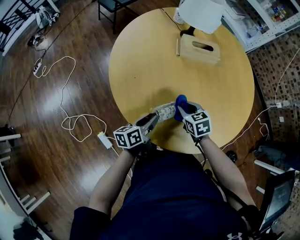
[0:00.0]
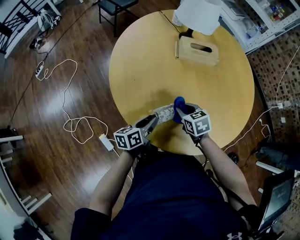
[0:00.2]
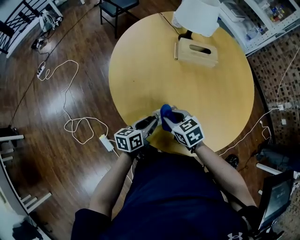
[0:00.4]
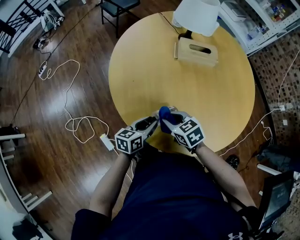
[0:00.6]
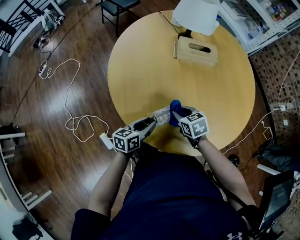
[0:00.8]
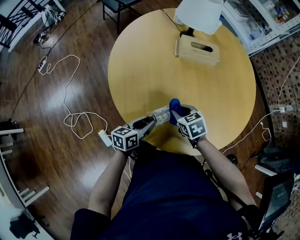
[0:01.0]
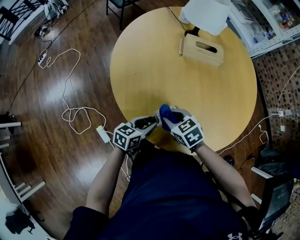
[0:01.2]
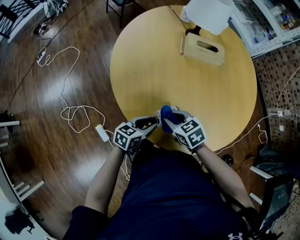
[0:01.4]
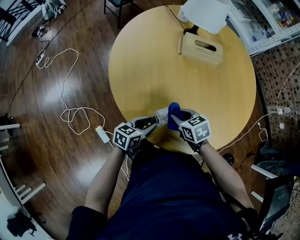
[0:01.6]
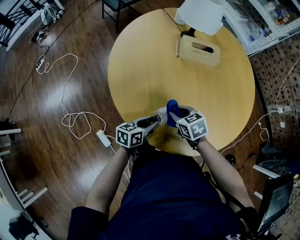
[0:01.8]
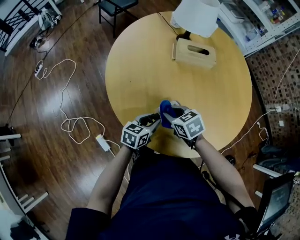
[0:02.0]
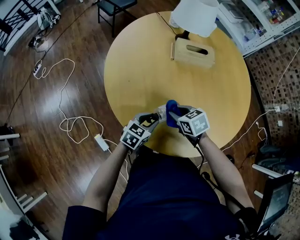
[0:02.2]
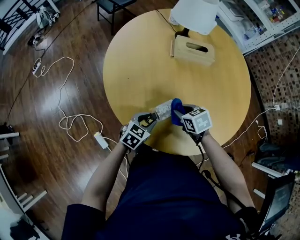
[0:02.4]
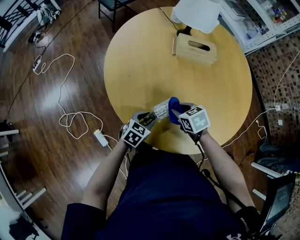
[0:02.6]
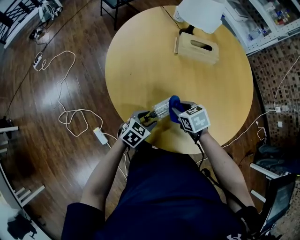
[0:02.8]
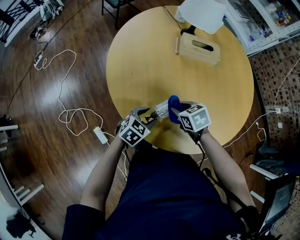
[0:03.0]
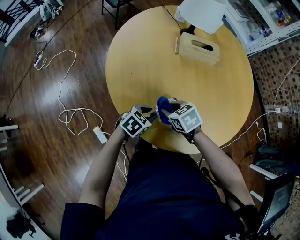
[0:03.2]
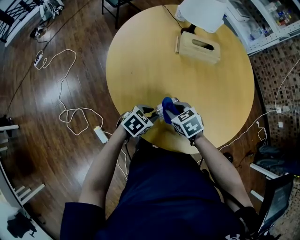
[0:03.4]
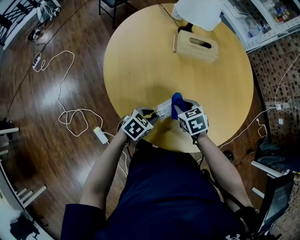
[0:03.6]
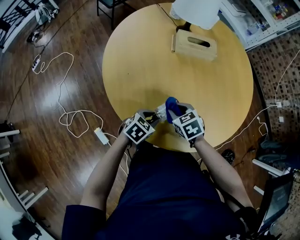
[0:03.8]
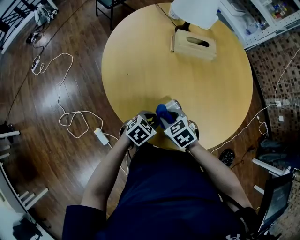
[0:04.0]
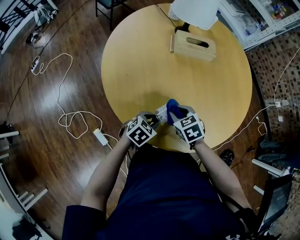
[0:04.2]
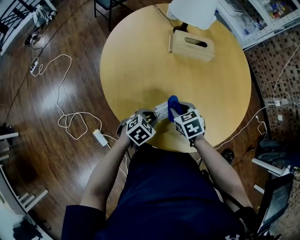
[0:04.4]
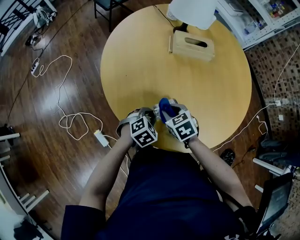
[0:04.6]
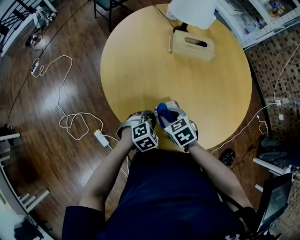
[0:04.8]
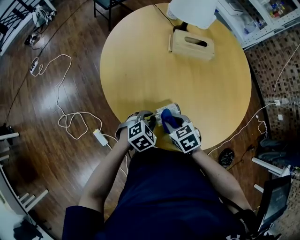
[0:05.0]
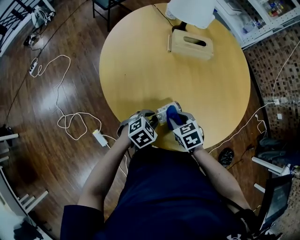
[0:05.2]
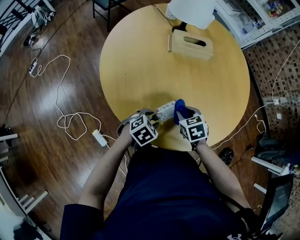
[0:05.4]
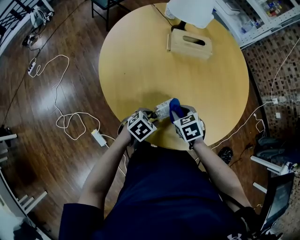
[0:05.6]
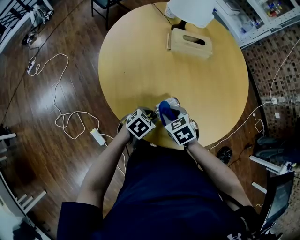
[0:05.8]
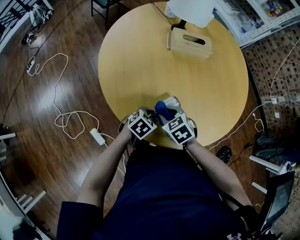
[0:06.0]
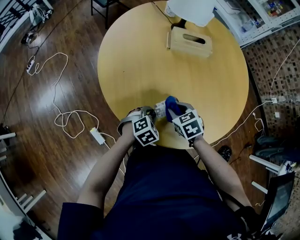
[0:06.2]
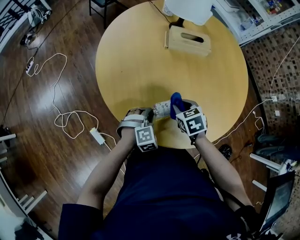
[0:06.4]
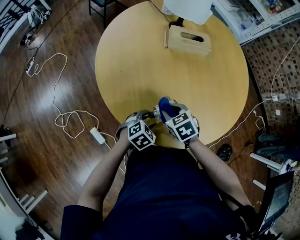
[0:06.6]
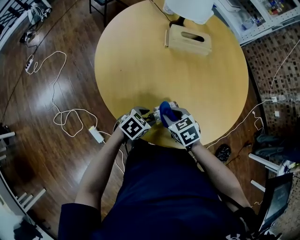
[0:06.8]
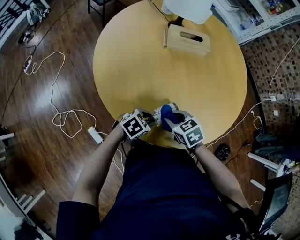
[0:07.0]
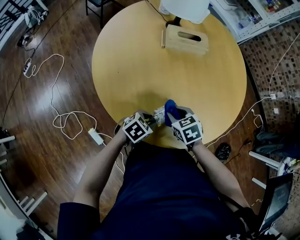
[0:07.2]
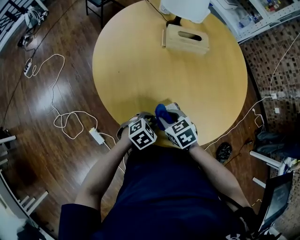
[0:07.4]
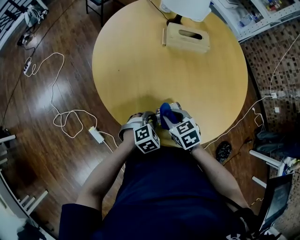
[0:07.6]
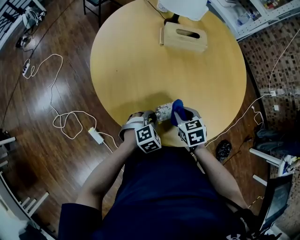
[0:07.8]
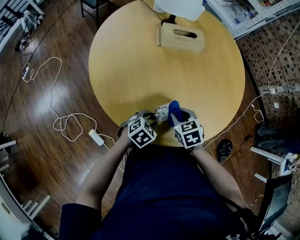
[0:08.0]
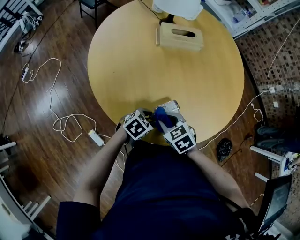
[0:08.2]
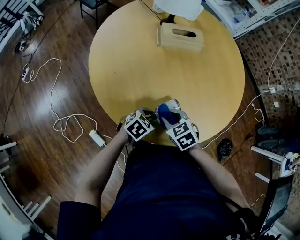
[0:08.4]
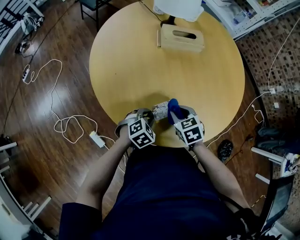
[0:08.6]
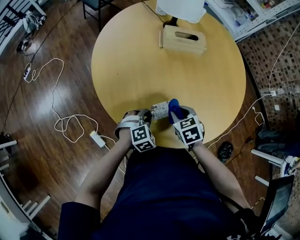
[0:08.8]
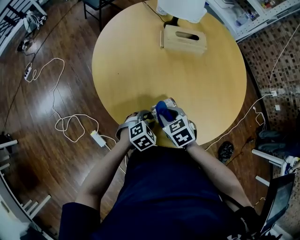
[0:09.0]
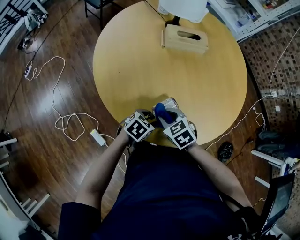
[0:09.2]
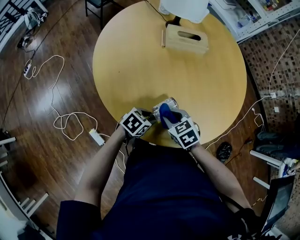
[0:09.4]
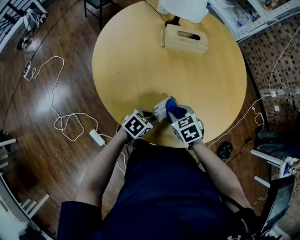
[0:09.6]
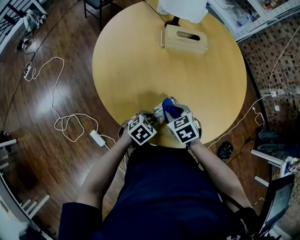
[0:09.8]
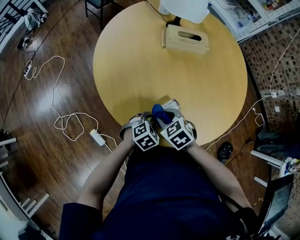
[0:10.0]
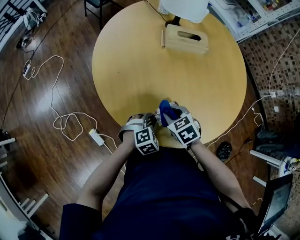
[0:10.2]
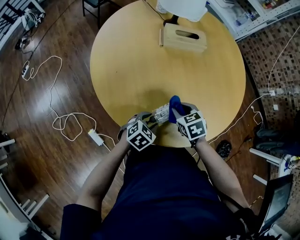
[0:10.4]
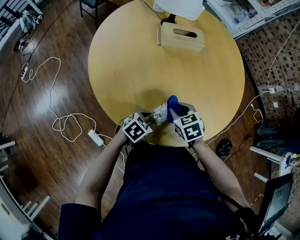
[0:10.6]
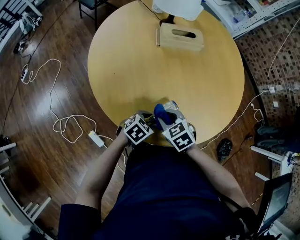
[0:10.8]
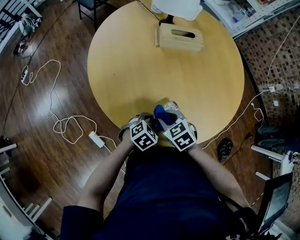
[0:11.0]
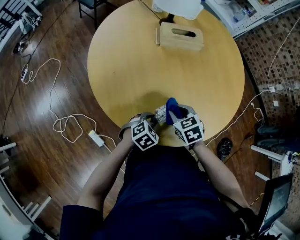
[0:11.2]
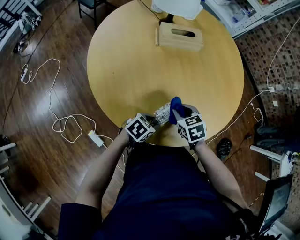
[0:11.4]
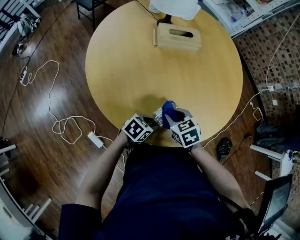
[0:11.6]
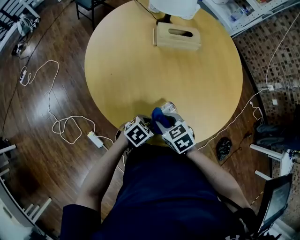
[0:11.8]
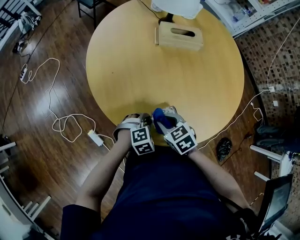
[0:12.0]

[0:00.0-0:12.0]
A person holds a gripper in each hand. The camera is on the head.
0:00.0 to 0:01.6: The right gripper swings left and right, roughly 5 cm each way, with 3 reversals; the left gripper rotates about 30 degrees.
0:01.6 to 0:03.0: The left gripper rotates some 30 degrees.
0:03.0 to 0:04.4: There are only small adjustments of the grippers.
0:04.4 to 0:06.0: The right gripper moves left and right over some 10 cm, changing direction 2 times.
0:06.0 to 0:07.6: The left gripper swivels approximately 30 degrees.
0:07.6 to 0:09.0: The right gripper swings left and right, some 10 cm each way, with 3 reversals.
0:09.0 to 0:10.4: The right gripper travels to the right by about 5 cm.
0:10.4 to 0:12.0: The right gripper changes place by about 10 cm. Meanwhile the left gripper rotates about 30 degrees.

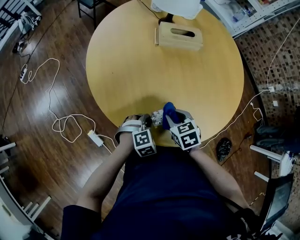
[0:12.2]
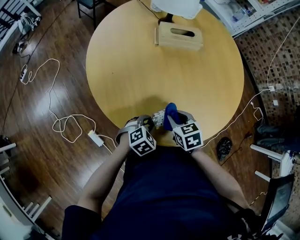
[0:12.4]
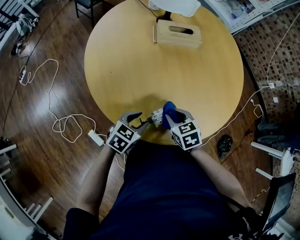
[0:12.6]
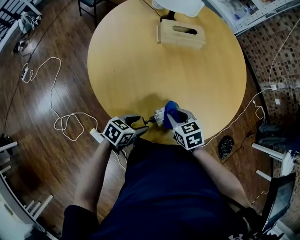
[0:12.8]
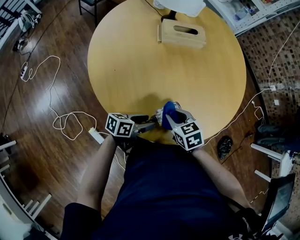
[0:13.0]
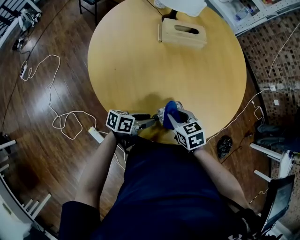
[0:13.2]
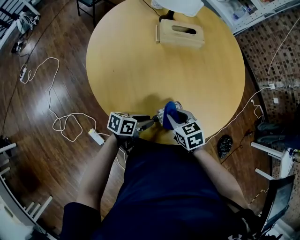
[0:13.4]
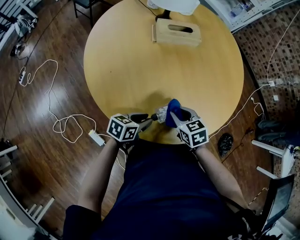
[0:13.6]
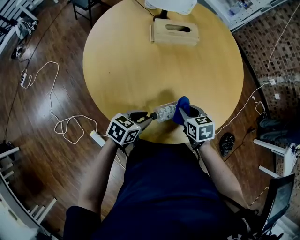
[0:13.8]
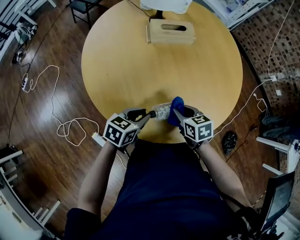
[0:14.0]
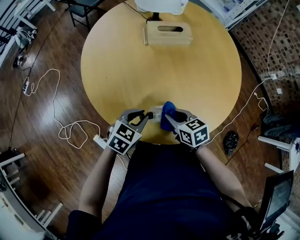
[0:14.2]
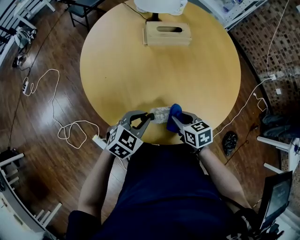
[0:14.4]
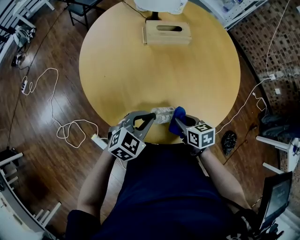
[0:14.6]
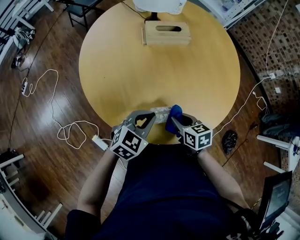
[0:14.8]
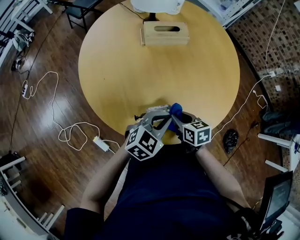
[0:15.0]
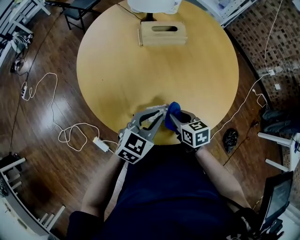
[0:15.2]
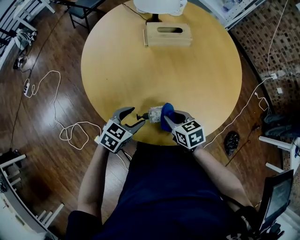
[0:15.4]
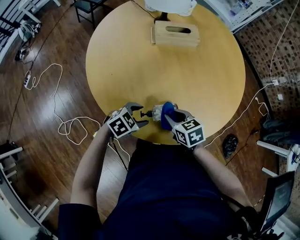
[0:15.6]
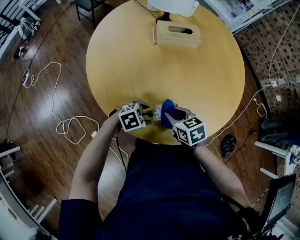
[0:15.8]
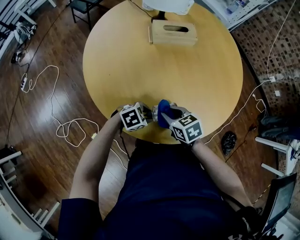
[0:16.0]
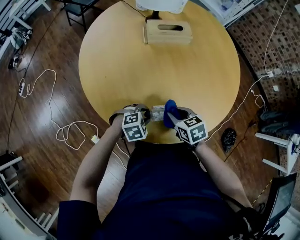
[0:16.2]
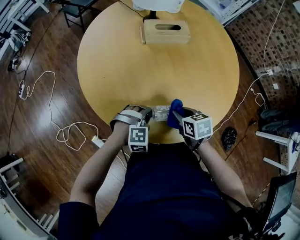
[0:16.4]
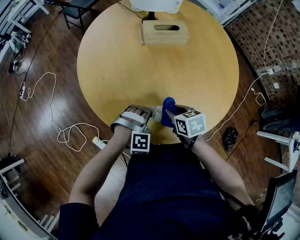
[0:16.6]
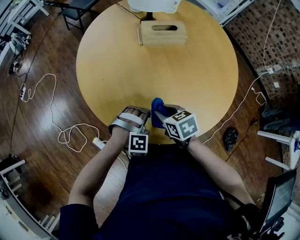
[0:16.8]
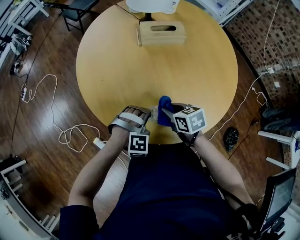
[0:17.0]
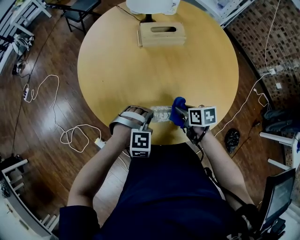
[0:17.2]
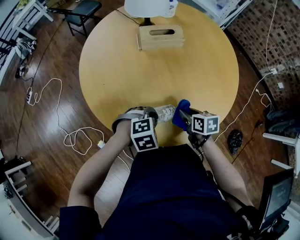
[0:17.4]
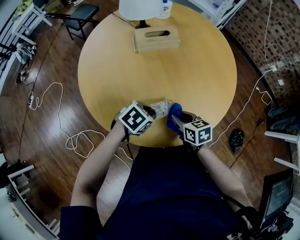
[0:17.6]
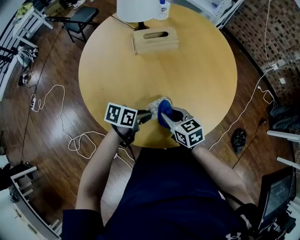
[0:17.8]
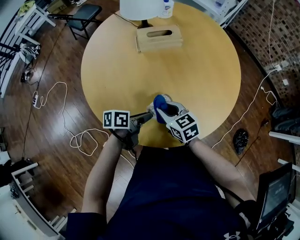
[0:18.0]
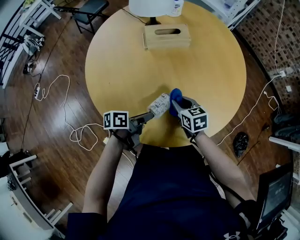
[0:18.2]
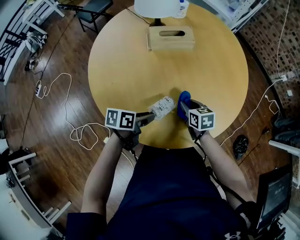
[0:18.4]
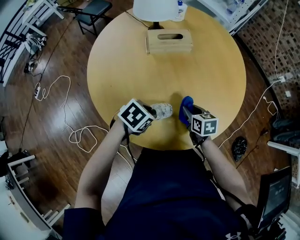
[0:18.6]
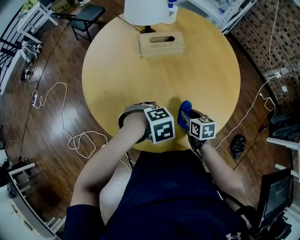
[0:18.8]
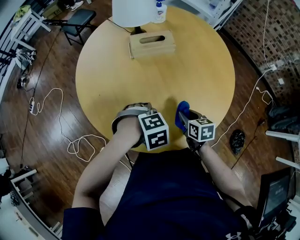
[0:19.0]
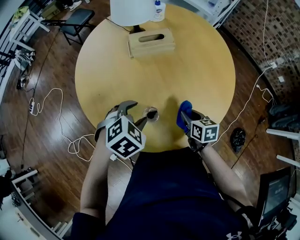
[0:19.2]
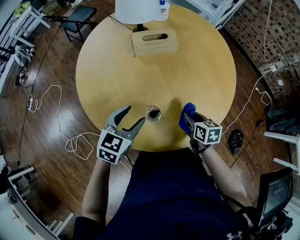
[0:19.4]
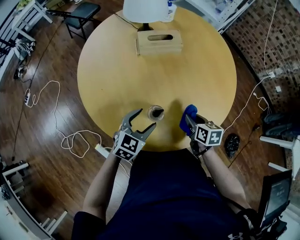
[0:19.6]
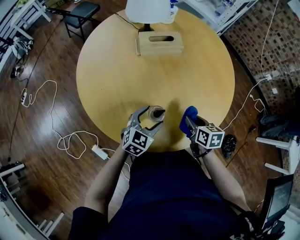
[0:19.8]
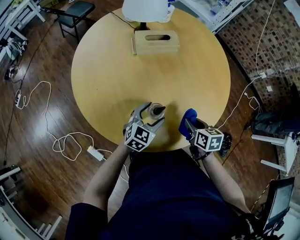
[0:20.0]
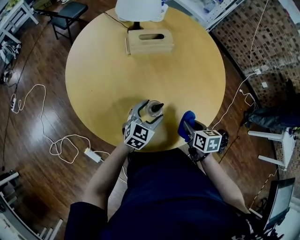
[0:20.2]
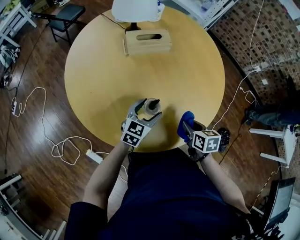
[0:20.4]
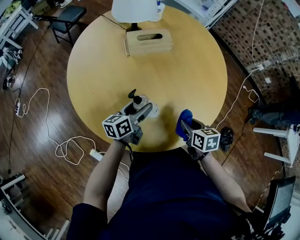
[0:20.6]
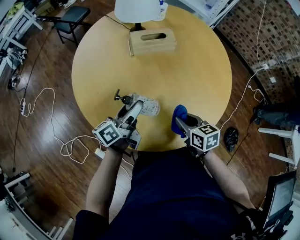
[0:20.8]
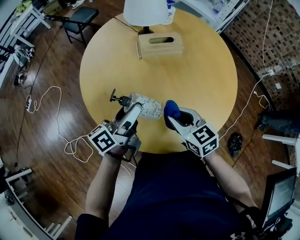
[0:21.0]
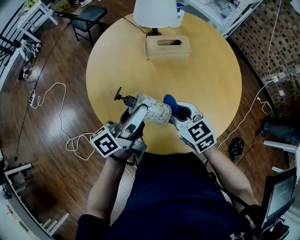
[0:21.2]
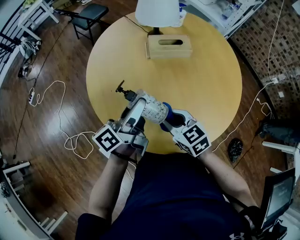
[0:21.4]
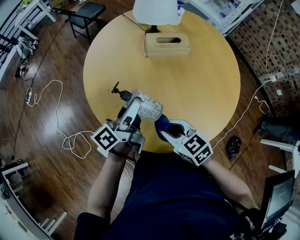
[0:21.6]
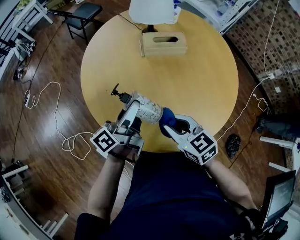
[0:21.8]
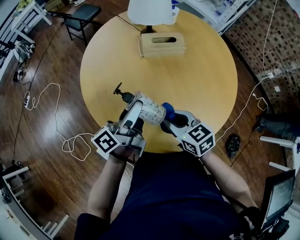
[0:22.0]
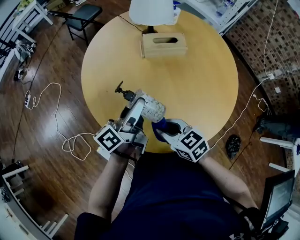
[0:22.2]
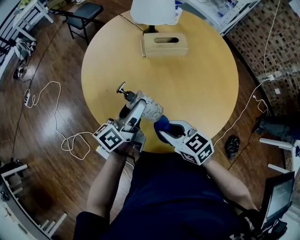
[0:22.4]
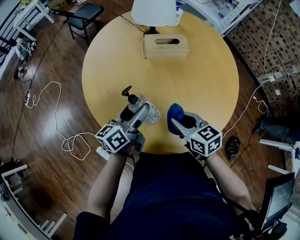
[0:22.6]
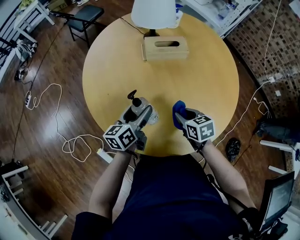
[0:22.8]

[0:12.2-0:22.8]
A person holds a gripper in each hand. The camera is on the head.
0:12.2 to 0:13.8: The left gripper is displaced upward by some 5 cm, and rotates around the line of its fingers by about 50 degrees, counterclockwise from behind, while the right gripper moves to the right, some 5 cm.
0:13.8 to 0:15.2: The left gripper heads upward and to the right, covering about 10 cm, and rotates roughly 30 degrees.
0:15.2 to 0:16.8: The left gripper shifts approximately 10 cm downward, rotates around the line of its fingers by approximately 70 degrees, clockwise from behind, and opens, then closes once more. The right gripper changes place by about 10 cm.
0:16.8 to 0:18.2: The left gripper rotates around the line of its fingers by approximately 130 degrees, counterclockwise from behind, while the right gripper swings up and down, roughly 5 cm each way, with 2 reversals.
0:18.2 to 0:19.8: The right gripper changes place by about 10 cm. Meanwhile the left gripper moves roughly 10 cm upward and comes back, rolls clockwise, seen from behind, by about 80 degrees, and opens its fingers.
0:19.8 to 0:21.2: The left gripper shifts some 20 cm upward and to the left, and twists some 60 degrees counterclockwise, seen from behind. Meanwhile the right gripper travels to the left and upward by roughly 20 cm, and swivels about 40 degrees.
0:21.2 to 0:22.8: The right gripper heads downward and to the right, covering approximately 10 cm, and changes its angle by roughly 30 degrees. The left gripper heads downward, covering approximately 15 cm, and changes its angle by some 30 degrees.

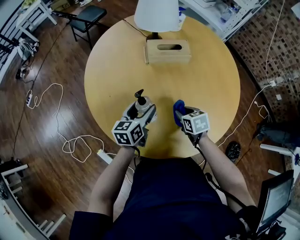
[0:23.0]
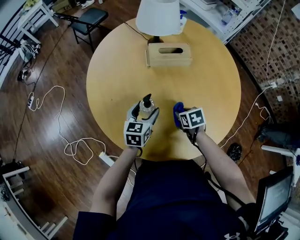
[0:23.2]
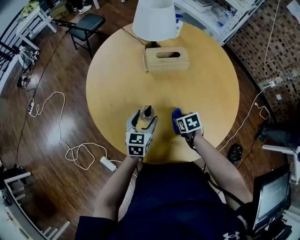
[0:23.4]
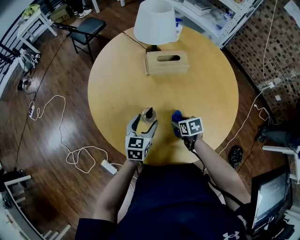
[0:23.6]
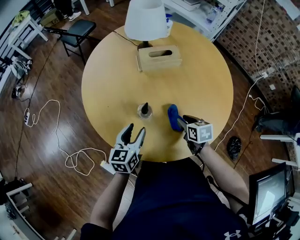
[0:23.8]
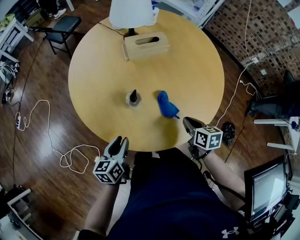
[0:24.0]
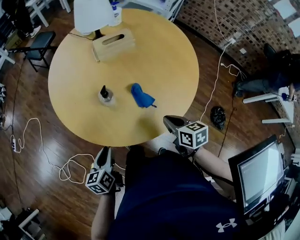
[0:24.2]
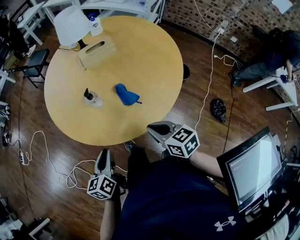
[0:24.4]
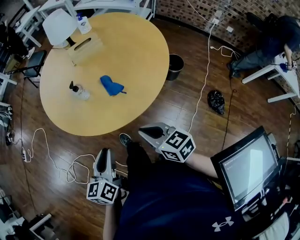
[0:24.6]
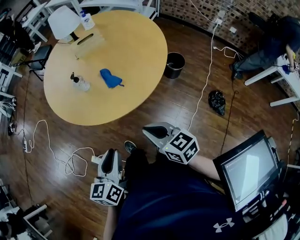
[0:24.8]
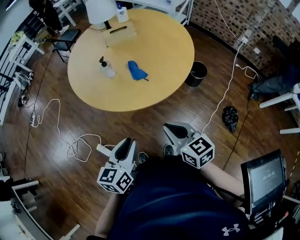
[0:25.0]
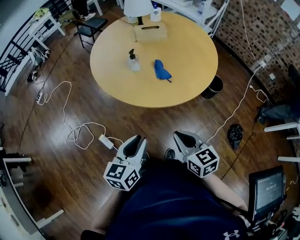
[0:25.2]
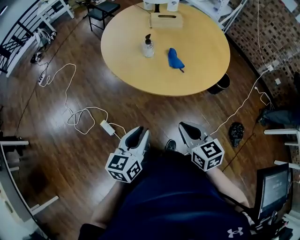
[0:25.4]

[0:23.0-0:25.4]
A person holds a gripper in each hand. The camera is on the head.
0:23.0 to 0:24.2: The right gripper is displaced backward and upward by approximately 20 cm, swivels approximately 30 degrees, and opens, then closes once more. The left gripper is displaced backward and to the left by approximately 20 cm, and closes.
0:24.2 to 0:25.4: The left gripper travels backward, upward and to the right by roughly 25 cm. The right gripper travels backward by roughly 25 cm, and rotates approximately 30 degrees.
